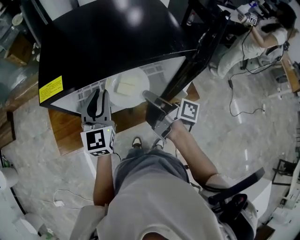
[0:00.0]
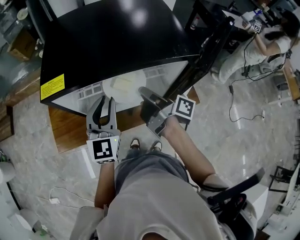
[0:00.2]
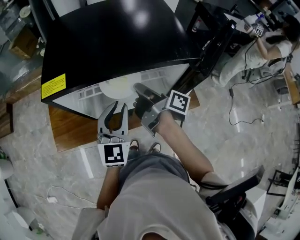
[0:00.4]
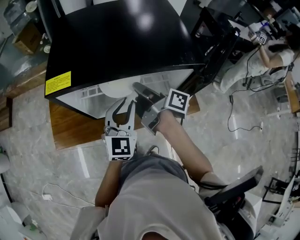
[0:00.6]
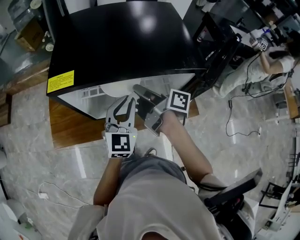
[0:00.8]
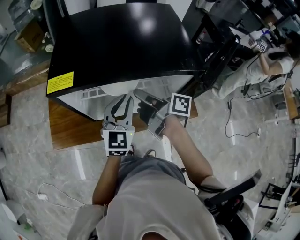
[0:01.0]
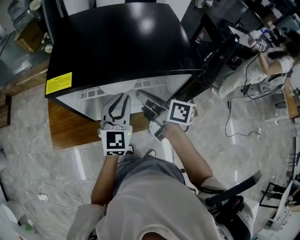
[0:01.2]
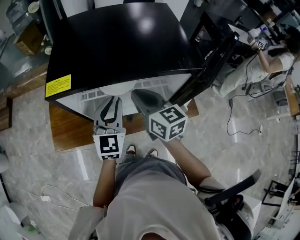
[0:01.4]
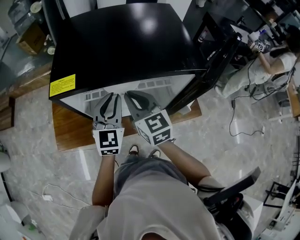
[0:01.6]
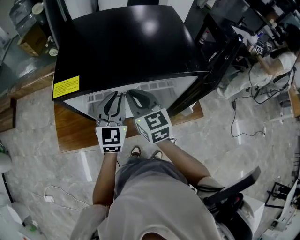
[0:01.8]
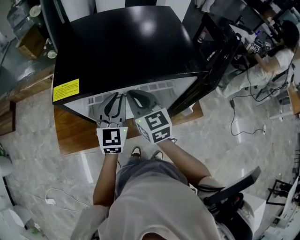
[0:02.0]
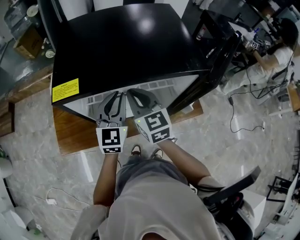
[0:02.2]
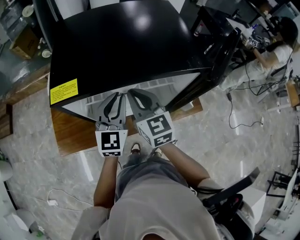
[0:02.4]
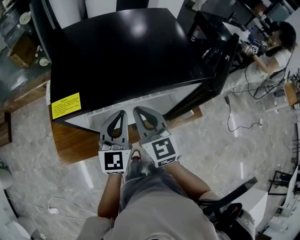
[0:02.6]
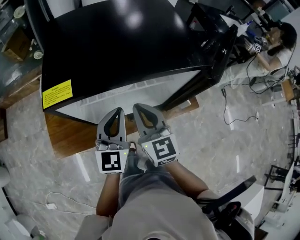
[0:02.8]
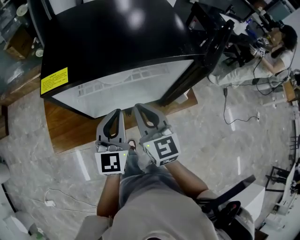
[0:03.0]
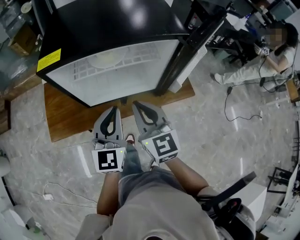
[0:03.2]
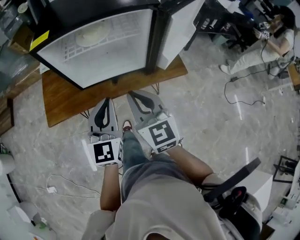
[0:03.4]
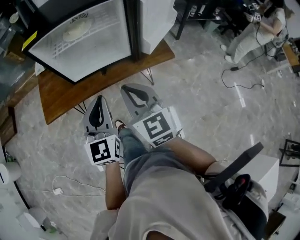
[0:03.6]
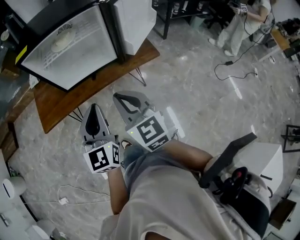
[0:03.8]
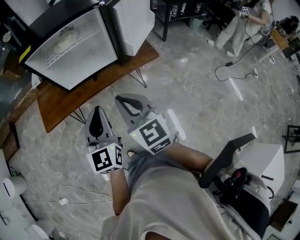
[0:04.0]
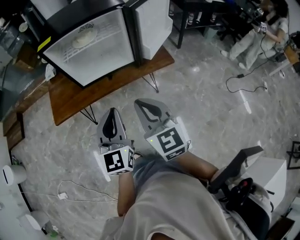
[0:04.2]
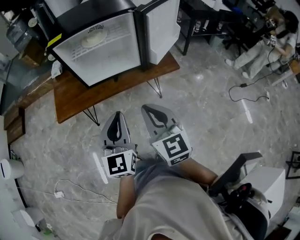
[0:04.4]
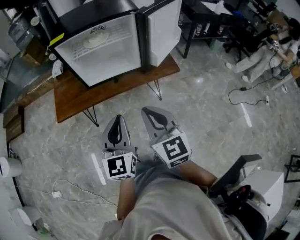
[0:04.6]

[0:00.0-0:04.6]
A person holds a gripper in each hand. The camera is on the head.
0:00.0 to 0:01.6: The right gripper goes some 10 cm to the left, and rotates around the line of its fingers by approximately 80 degrees, counterclockwise from behind.
0:01.6 to 0:03.0: Both grippers travel together backward, some 10 cm.
0:03.0 to 0:04.6: The two grippers travel together, backward, roughly 60 cm.

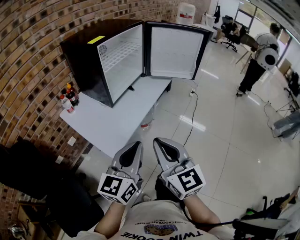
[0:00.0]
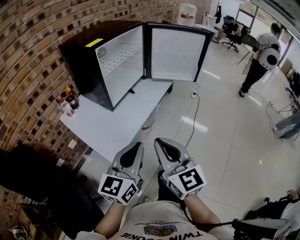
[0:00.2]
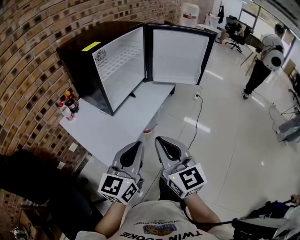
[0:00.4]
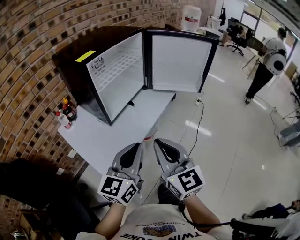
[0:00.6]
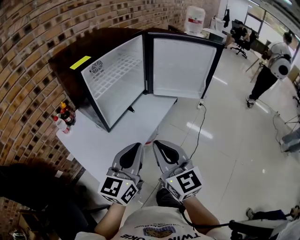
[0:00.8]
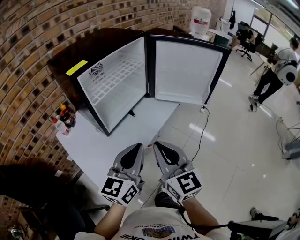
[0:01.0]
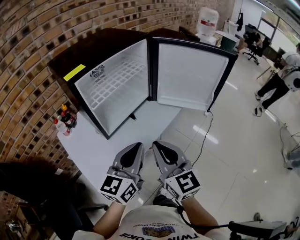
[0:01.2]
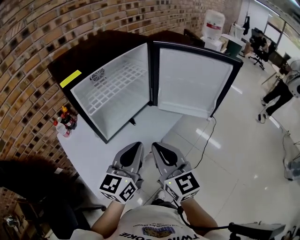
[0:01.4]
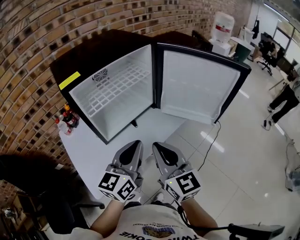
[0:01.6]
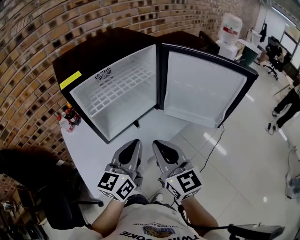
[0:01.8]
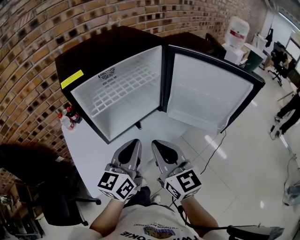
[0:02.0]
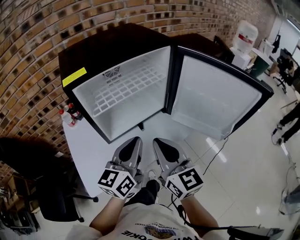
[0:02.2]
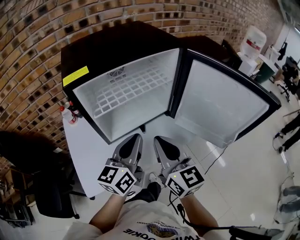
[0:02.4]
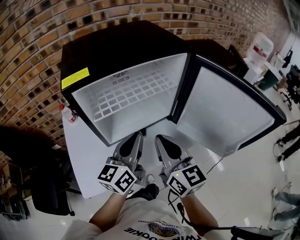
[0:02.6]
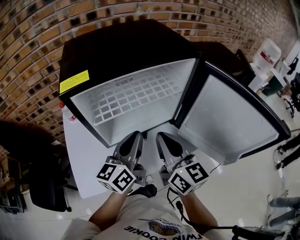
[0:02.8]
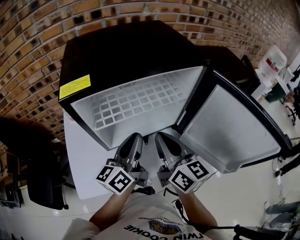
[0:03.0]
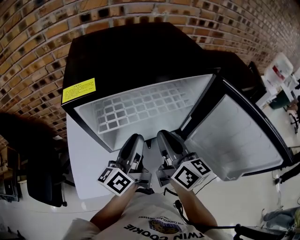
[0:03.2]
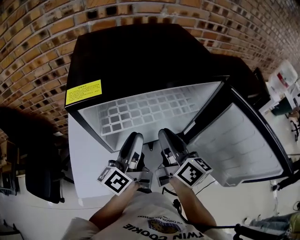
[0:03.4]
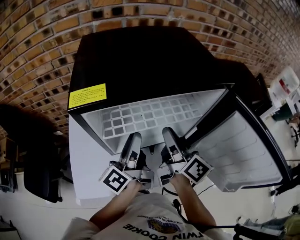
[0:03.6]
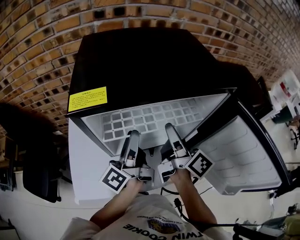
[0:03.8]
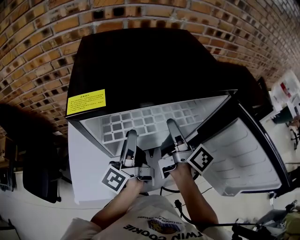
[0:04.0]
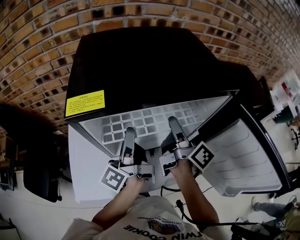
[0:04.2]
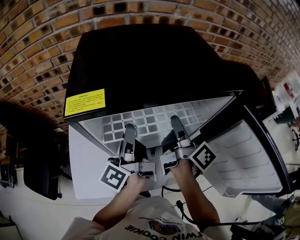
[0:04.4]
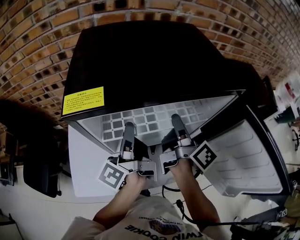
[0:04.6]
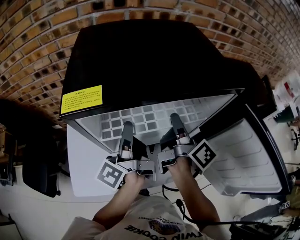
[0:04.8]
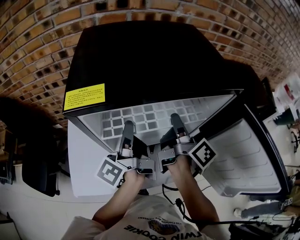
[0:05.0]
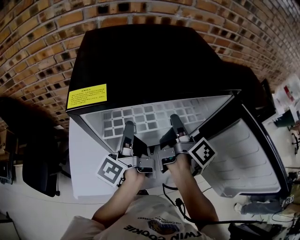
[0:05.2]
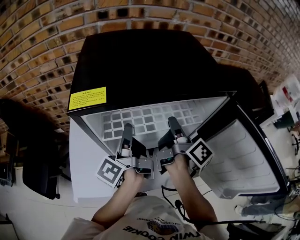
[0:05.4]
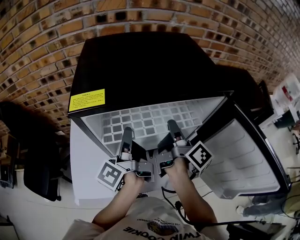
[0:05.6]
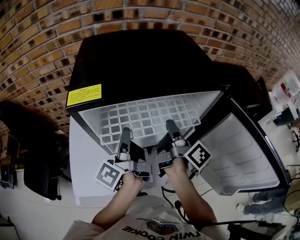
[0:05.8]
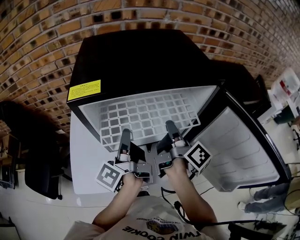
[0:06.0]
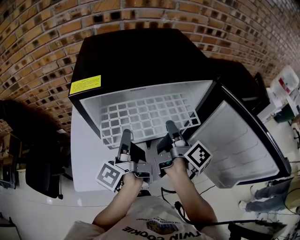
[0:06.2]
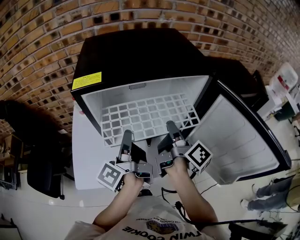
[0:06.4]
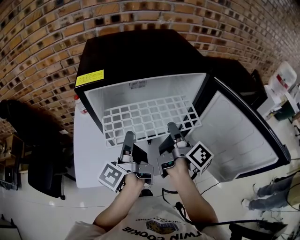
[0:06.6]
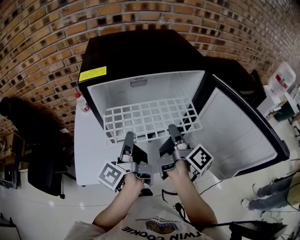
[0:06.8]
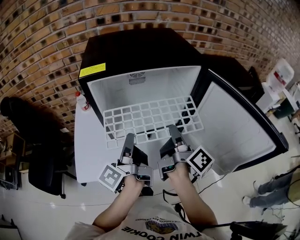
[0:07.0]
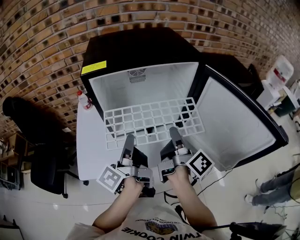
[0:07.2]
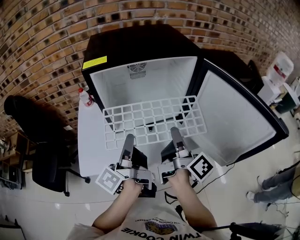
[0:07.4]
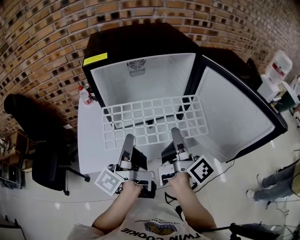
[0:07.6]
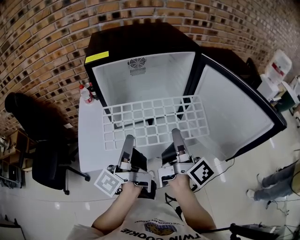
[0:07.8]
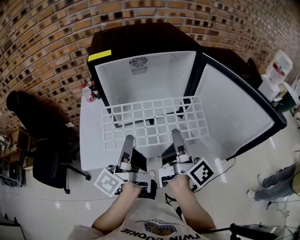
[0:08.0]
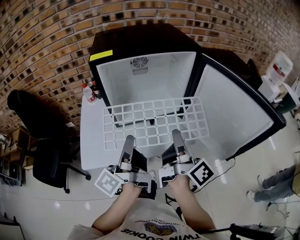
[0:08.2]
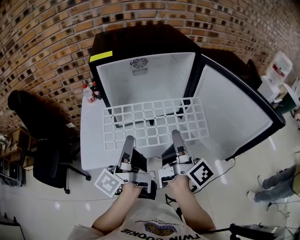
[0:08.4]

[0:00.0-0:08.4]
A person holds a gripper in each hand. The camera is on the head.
0:00.0 to 0:01.4: Both grippers move forward, some 30 cm.
0:01.4 to 0:02.8: Both grippers travel together forward, some 20 cm. The left gripper swivels about 30 degrees, while the right gripper changes its angle by approximately 20 degrees.
0:02.8 to 0:04.2: The left gripper heads forward and to the left, covering about 10 cm, rotates roughly 50 degrees, and opens up, while the right gripper heads forward, covering about 15 cm, rolls clockwise, seen from behind, by approximately 50 degrees, and opens up.
0:04.2 to 0:05.6: The left gripper closes its fingers, while the right gripper closes.
0:05.6 to 0:07.0: The two grippers go roughly 15 cm backward.
0:07.0 to 0:08.4: The grippers both shift backward by some 10 cm.

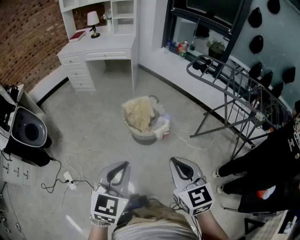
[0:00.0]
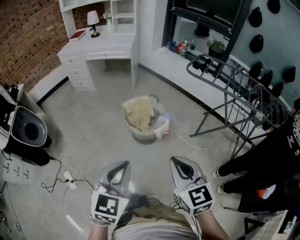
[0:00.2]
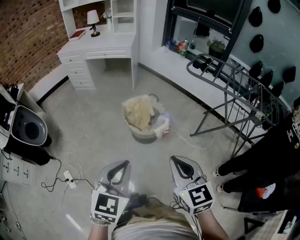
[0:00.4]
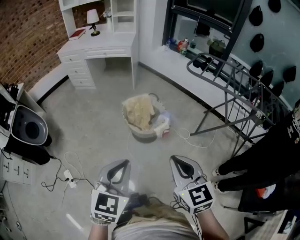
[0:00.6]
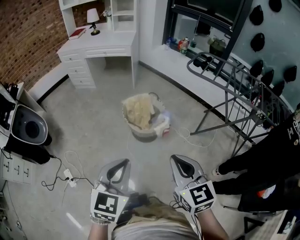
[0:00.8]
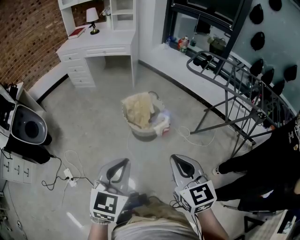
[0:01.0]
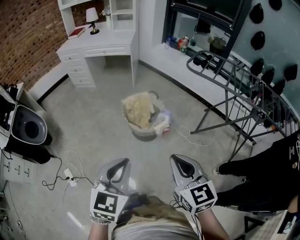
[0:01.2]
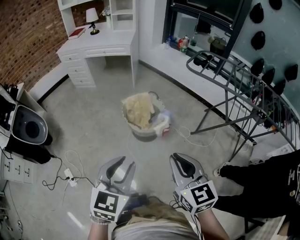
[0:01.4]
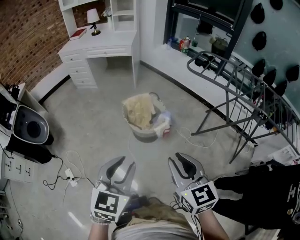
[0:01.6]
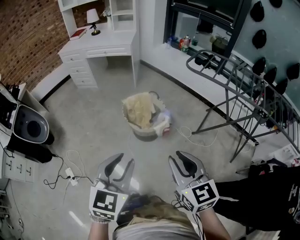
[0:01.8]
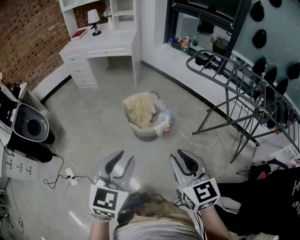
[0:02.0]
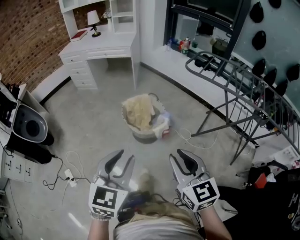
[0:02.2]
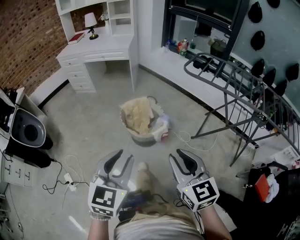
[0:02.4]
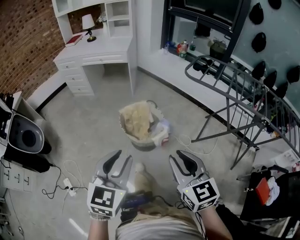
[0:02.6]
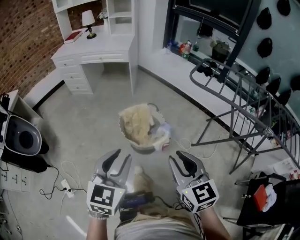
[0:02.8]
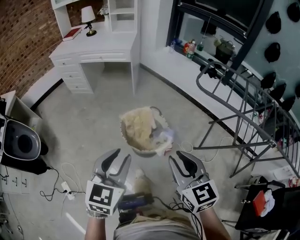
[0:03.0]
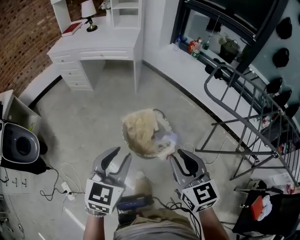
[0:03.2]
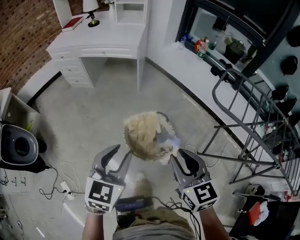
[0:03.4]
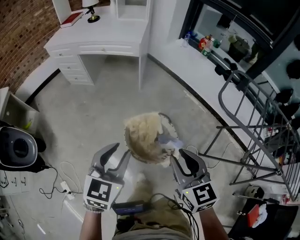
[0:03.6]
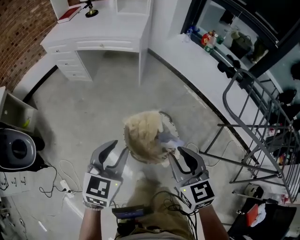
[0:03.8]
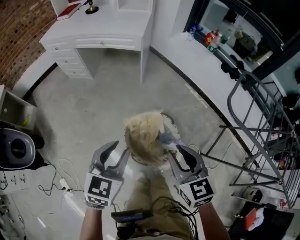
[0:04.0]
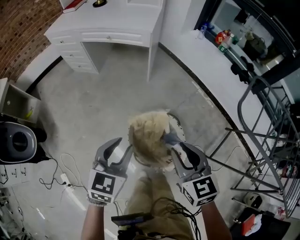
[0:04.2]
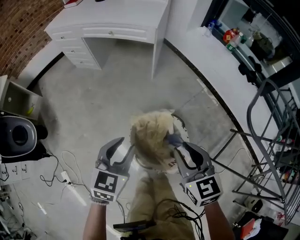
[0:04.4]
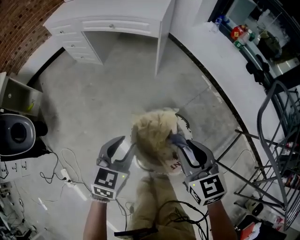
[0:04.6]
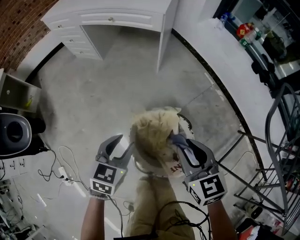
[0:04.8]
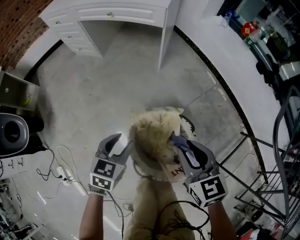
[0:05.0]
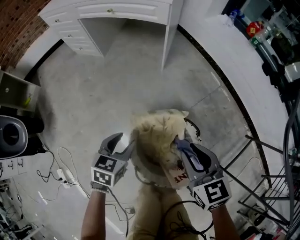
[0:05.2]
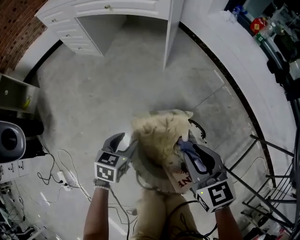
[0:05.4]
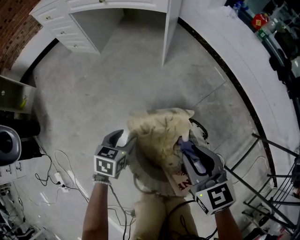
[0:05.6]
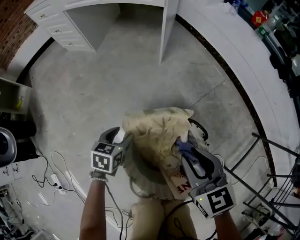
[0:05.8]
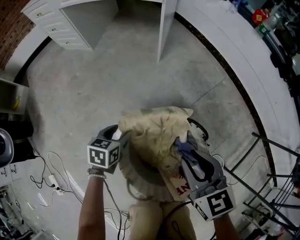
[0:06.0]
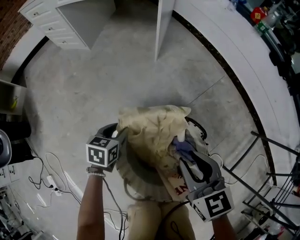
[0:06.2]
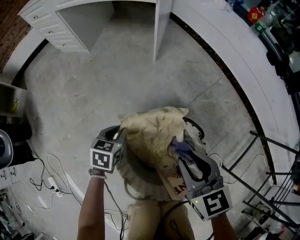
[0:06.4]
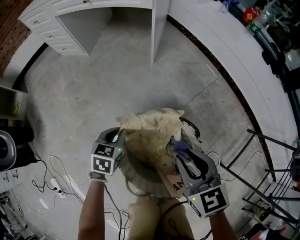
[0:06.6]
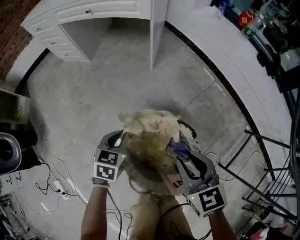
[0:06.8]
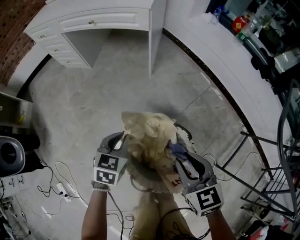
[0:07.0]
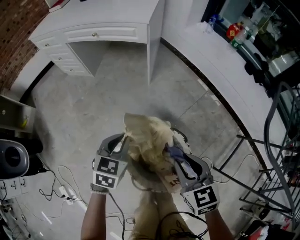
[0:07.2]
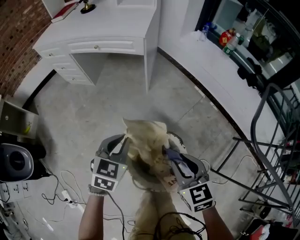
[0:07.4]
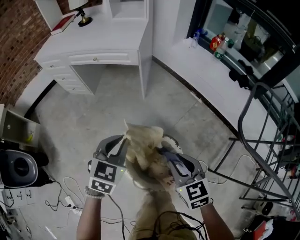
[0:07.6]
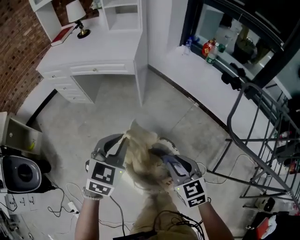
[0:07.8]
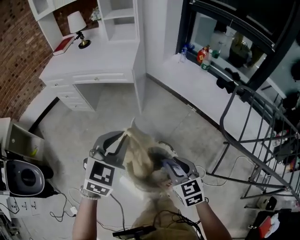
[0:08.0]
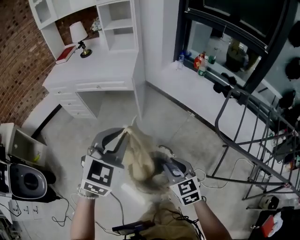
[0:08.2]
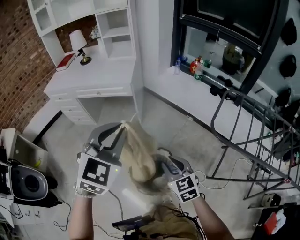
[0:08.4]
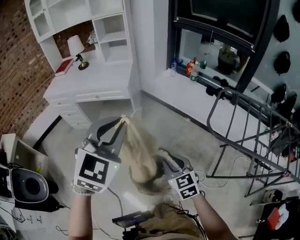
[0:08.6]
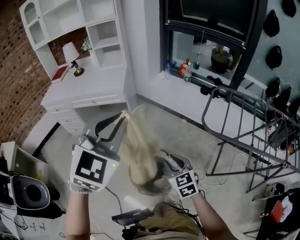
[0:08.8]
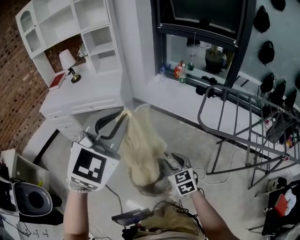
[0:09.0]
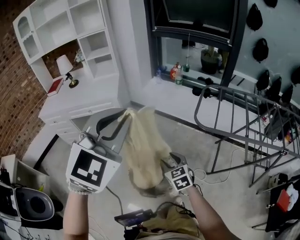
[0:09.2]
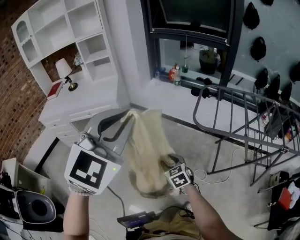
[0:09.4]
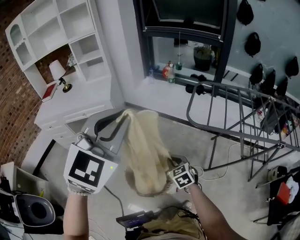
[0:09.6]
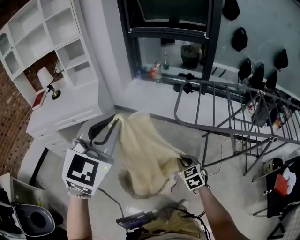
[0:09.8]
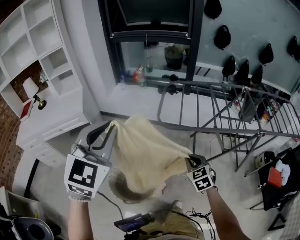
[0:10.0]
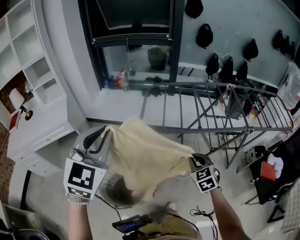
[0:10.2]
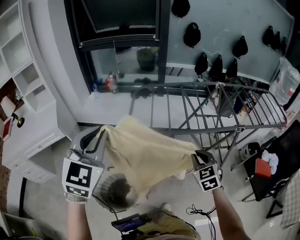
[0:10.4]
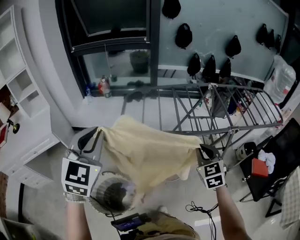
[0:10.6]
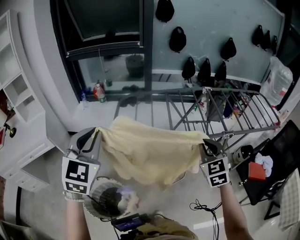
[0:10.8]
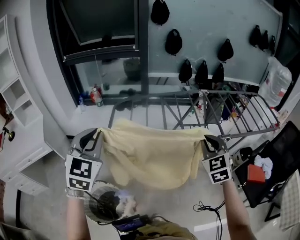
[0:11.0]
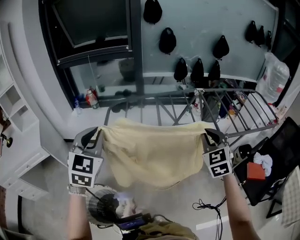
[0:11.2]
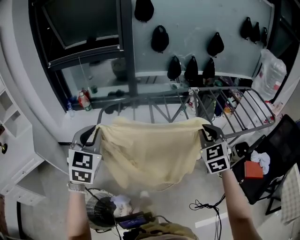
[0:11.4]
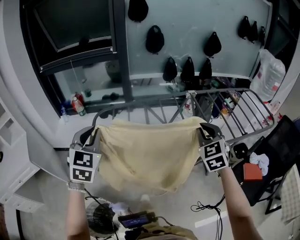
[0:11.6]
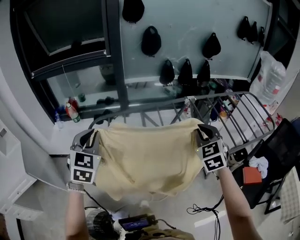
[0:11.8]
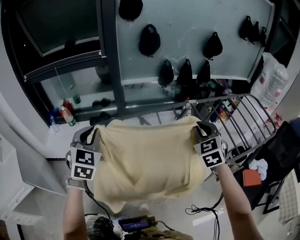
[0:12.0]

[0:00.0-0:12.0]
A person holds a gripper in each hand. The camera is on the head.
0:00.0 to 0:01.6: The left gripper opens its fingers.
0:01.6 to 0:03.0: The two grippers go about 20 cm forward.
0:03.0 to 0:04.4: The grippers both shift forward and downward by some 35 cm.
0:04.4 to 0:06.0: The left gripper is displaced downward by roughly 40 cm, changes its angle by about 30 degrees, and opens. Meanwhile the right gripper heads downward, covering some 25 cm.
0:06.0 to 0:07.6: The left gripper goes some 40 cm upward, rotates approximately 40 degrees, and closes its fingers. Meanwhile the right gripper heads upward, covering roughly 20 cm.
0:07.6 to 0:09.0: The right gripper is displaced upward and backward by some 10 cm. The left gripper travels upward by some 35 cm, and swivels approximately 40 degrees.
0:09.0 to 0:10.4: The right gripper shifts by approximately 40 cm, turns by some 40 degrees, and closes up. Meanwhile the left gripper ends up about 20 cm from where it was.
0:10.4 to 0:12.0: The two grippers travel together, forward and to the right, approximately 40 cm.
